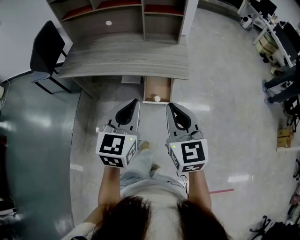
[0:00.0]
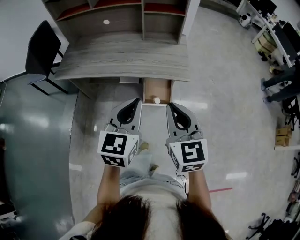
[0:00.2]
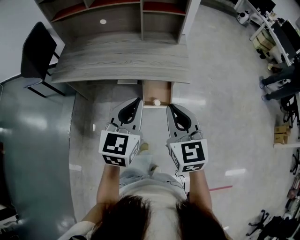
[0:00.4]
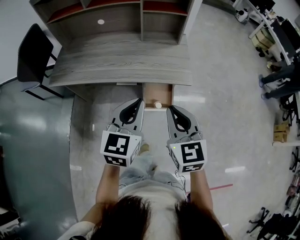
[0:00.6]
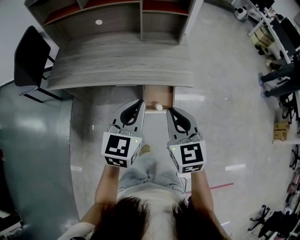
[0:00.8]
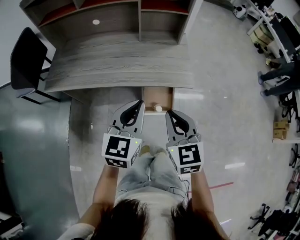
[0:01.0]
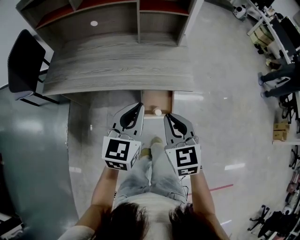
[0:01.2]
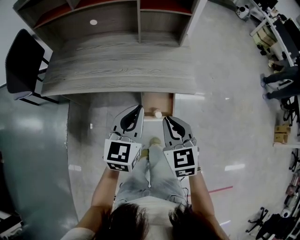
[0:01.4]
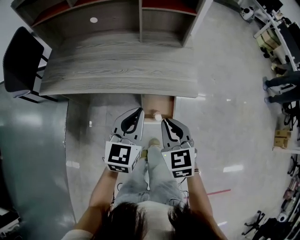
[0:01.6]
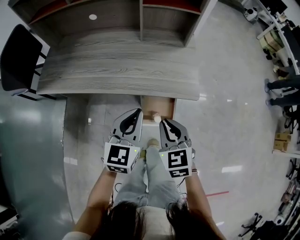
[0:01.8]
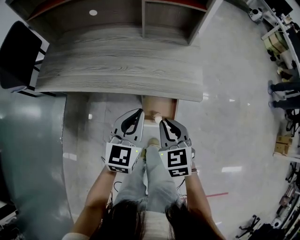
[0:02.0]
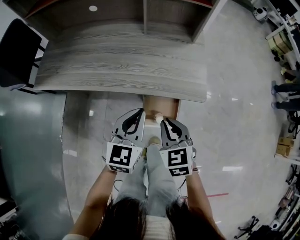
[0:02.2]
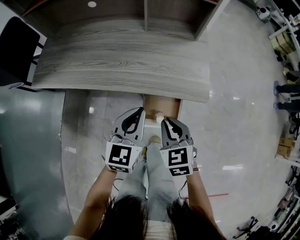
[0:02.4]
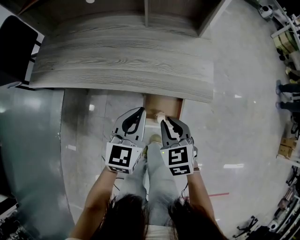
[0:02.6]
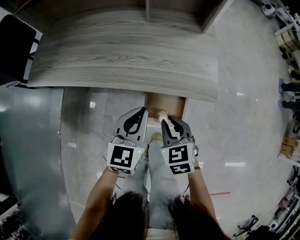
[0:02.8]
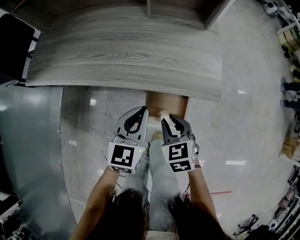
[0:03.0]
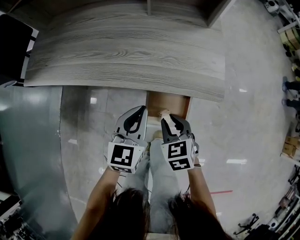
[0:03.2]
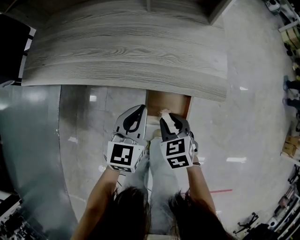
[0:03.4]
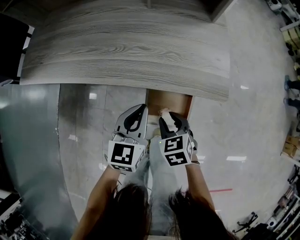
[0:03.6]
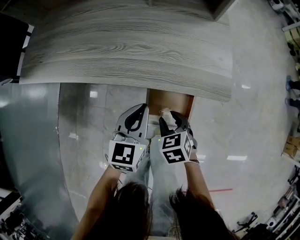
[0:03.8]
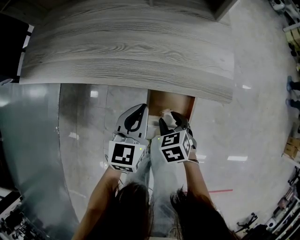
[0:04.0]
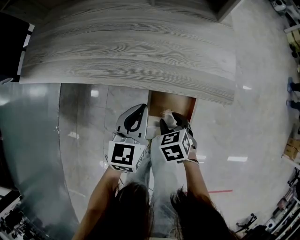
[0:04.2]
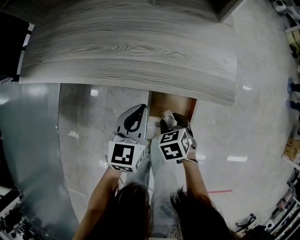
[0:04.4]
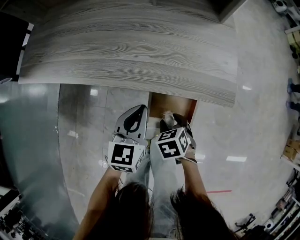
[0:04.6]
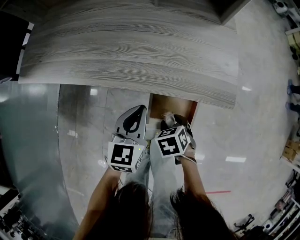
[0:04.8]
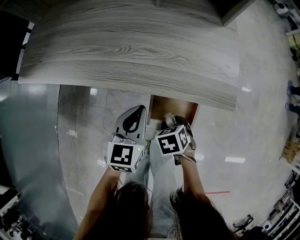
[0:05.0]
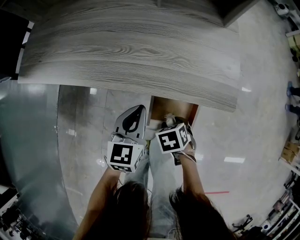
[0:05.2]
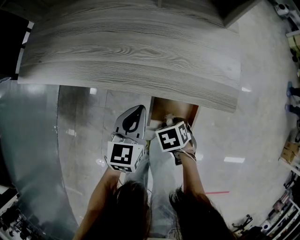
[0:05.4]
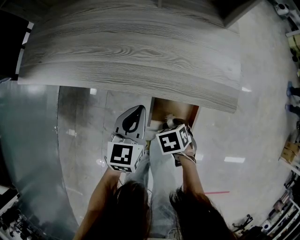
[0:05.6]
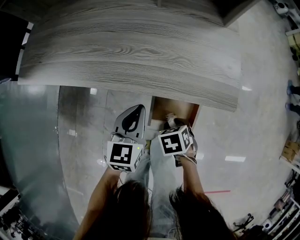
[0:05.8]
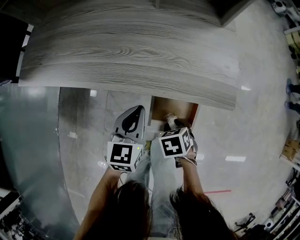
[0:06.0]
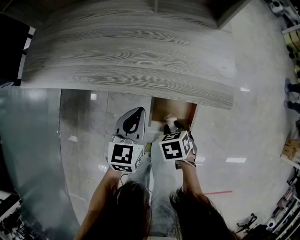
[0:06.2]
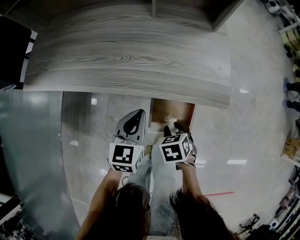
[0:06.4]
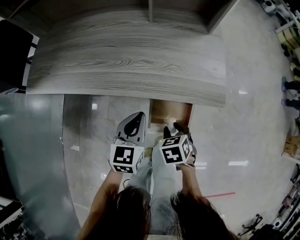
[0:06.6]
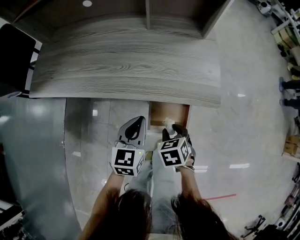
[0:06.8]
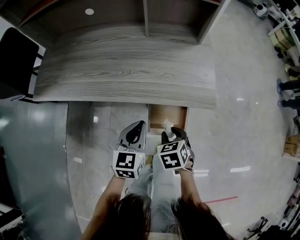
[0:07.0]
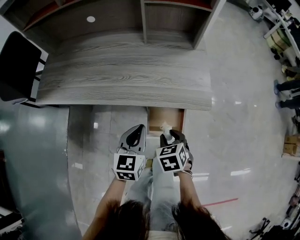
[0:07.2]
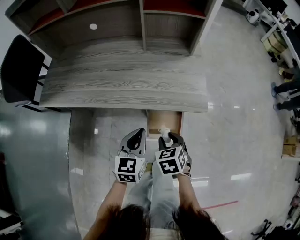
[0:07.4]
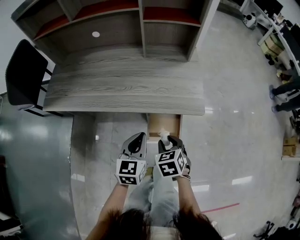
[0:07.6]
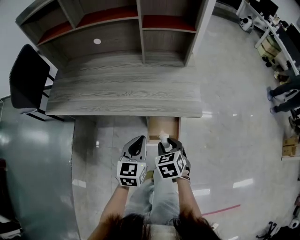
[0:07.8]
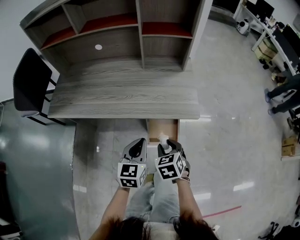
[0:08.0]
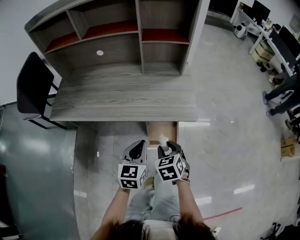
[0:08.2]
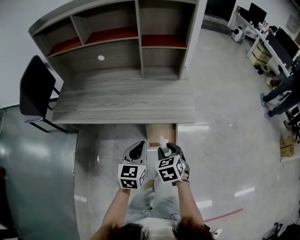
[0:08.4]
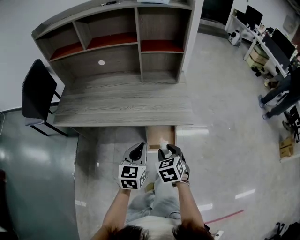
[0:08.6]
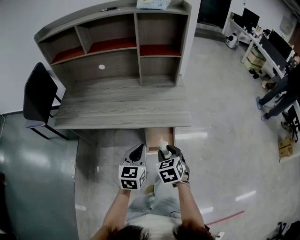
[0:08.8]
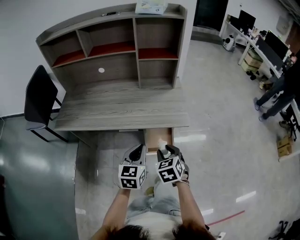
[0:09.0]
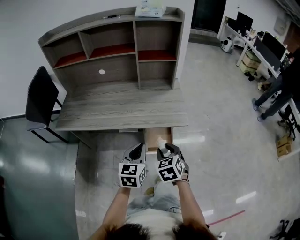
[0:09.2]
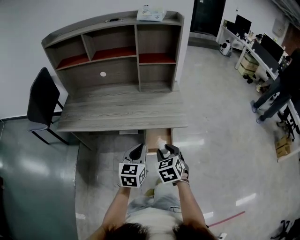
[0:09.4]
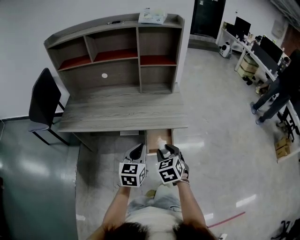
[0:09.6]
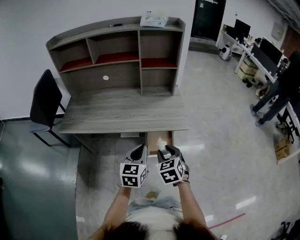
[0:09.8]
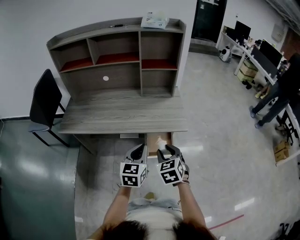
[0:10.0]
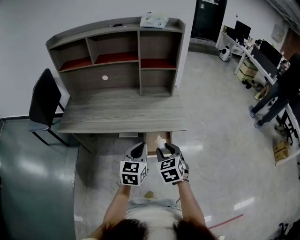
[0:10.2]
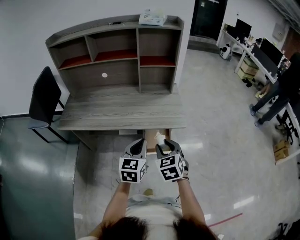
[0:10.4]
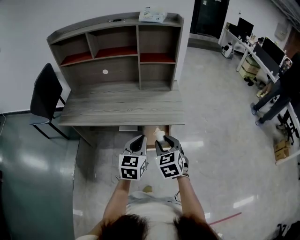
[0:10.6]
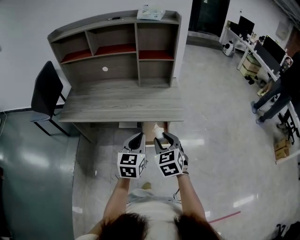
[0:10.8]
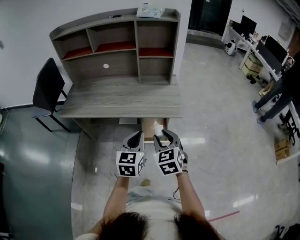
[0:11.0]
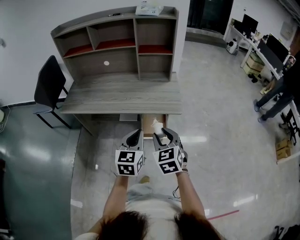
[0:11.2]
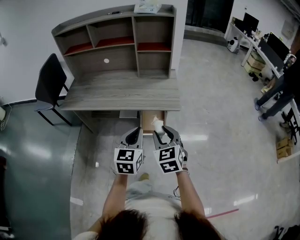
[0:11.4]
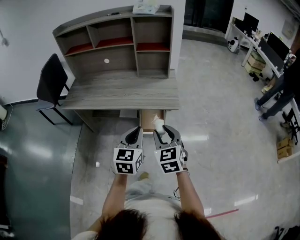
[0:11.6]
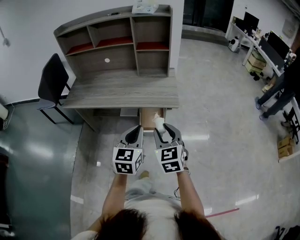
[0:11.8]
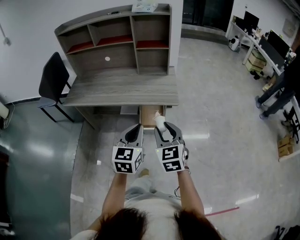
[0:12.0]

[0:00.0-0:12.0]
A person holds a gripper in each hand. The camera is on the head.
0:00.0 to 0:01.6: The left gripper is displaced forward and downward by approximately 20 cm. The right gripper heads downward and forward, covering some 20 cm.
0:01.6 to 0:03.0: The grippers both shift downward by some 20 cm.
0:03.0 to 0:04.4: The left gripper is displaced downward by approximately 5 cm, while the right gripper is displaced downward by some 10 cm, and opens up.
0:04.4 to 0:06.0: The grippers make only small movements.
0:06.0 to 0:07.6: The two grippers go approximately 15 cm upward. The right gripper swivels some 20 degrees.
0:07.6 to 0:09.0: The two grippers go some 10 cm upward and backward.
0:09.0 to 0:10.4: Both grippers move upward, about 5 cm.
0:10.4 to 0:12.0: Both grippers travel together backward, to the right and upward, some 15 cm.

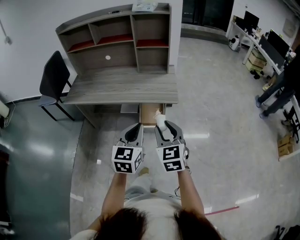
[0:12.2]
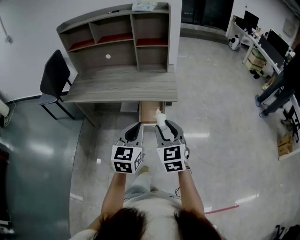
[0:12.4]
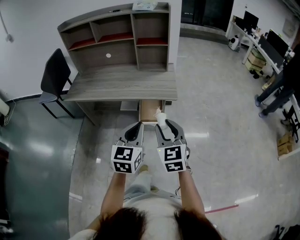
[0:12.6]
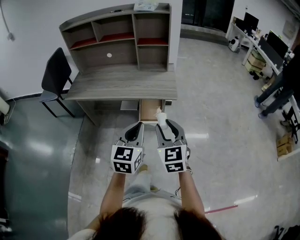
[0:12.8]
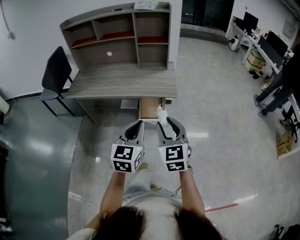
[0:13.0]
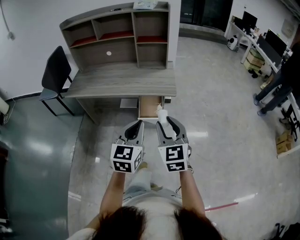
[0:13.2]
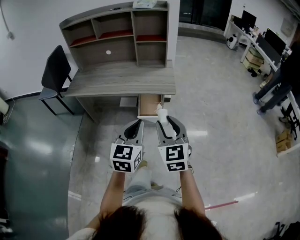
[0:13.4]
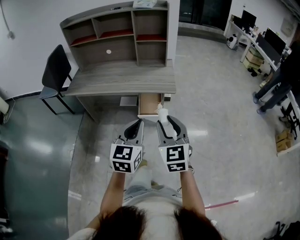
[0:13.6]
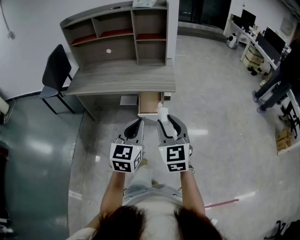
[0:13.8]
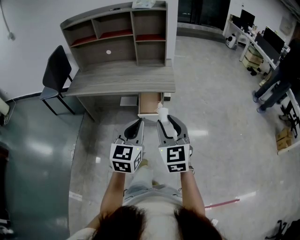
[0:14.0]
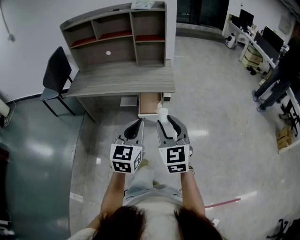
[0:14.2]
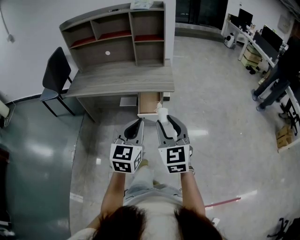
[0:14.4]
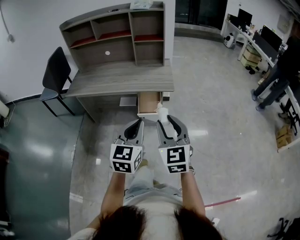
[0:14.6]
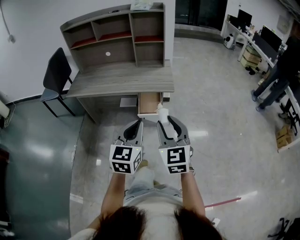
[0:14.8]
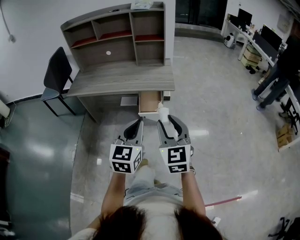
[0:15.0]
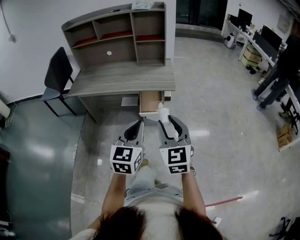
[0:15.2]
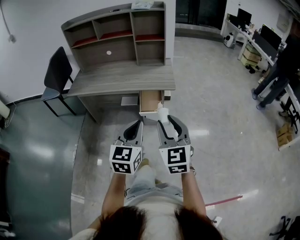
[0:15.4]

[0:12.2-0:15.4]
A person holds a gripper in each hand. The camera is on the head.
0:12.2 to 0:13.8: The two grippers go roughly 10 cm backward.
0:13.8 to 0:15.4: The grippers make only small movements.

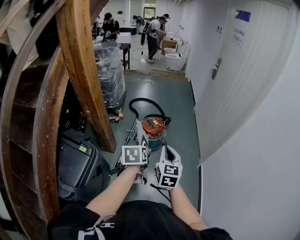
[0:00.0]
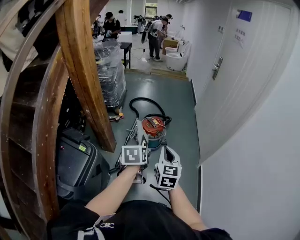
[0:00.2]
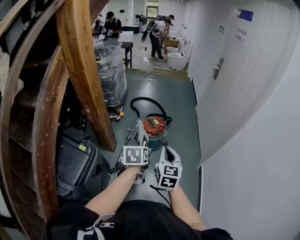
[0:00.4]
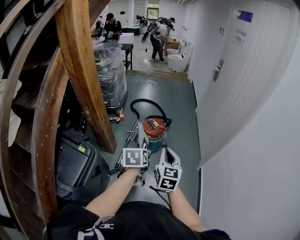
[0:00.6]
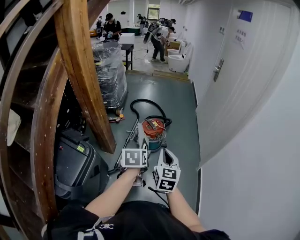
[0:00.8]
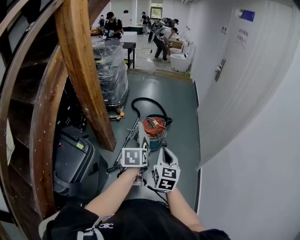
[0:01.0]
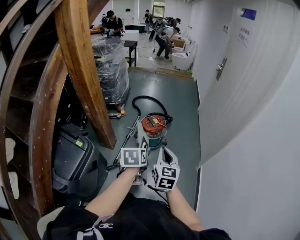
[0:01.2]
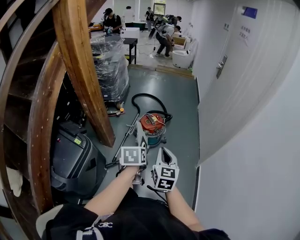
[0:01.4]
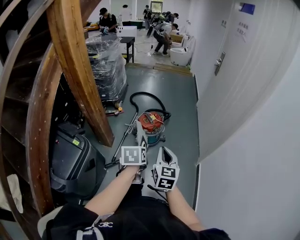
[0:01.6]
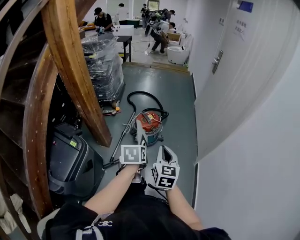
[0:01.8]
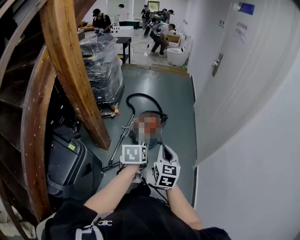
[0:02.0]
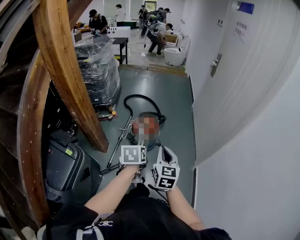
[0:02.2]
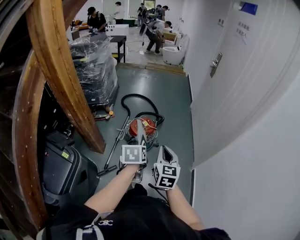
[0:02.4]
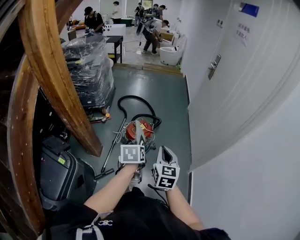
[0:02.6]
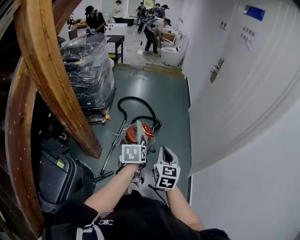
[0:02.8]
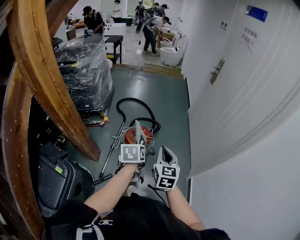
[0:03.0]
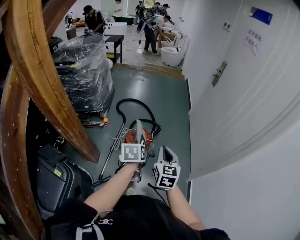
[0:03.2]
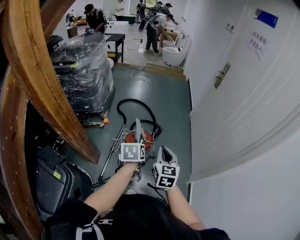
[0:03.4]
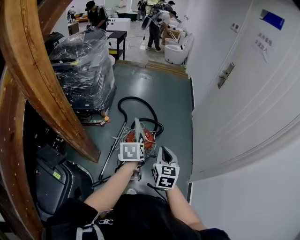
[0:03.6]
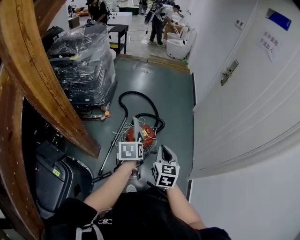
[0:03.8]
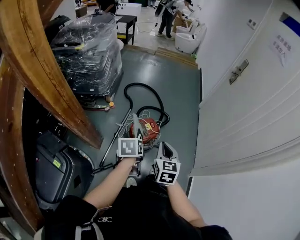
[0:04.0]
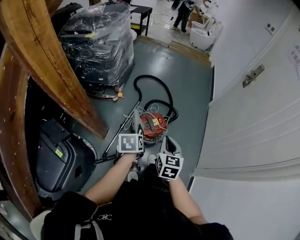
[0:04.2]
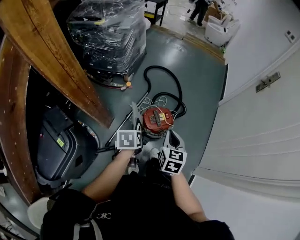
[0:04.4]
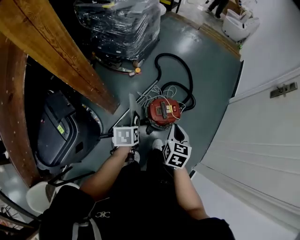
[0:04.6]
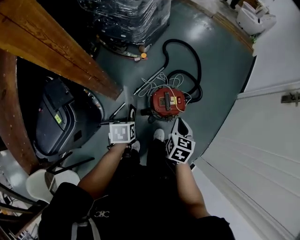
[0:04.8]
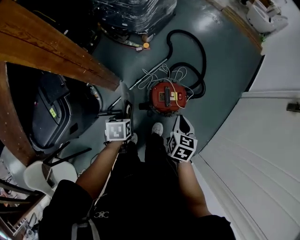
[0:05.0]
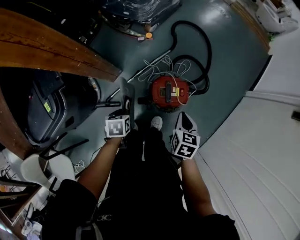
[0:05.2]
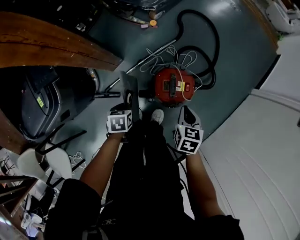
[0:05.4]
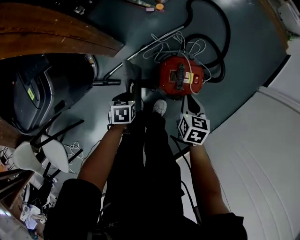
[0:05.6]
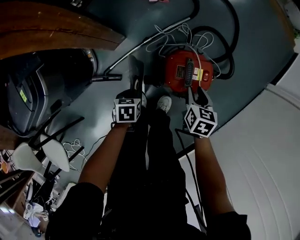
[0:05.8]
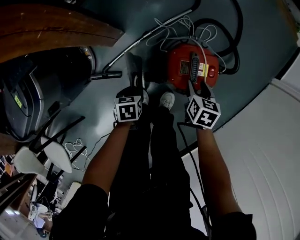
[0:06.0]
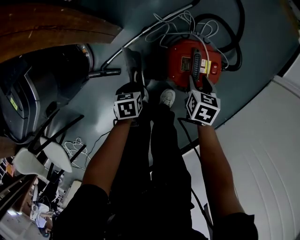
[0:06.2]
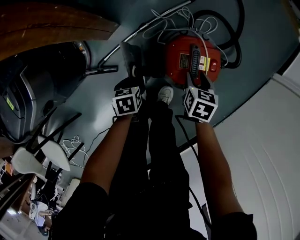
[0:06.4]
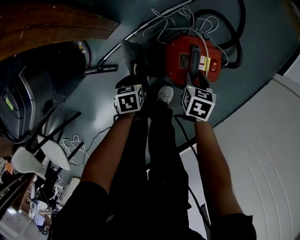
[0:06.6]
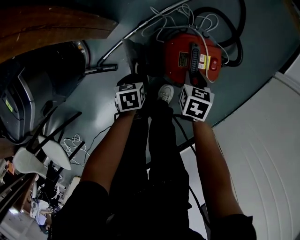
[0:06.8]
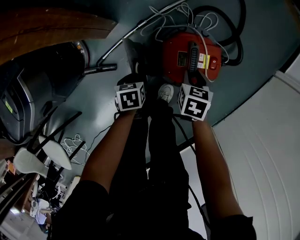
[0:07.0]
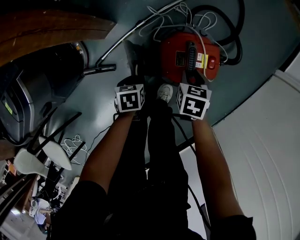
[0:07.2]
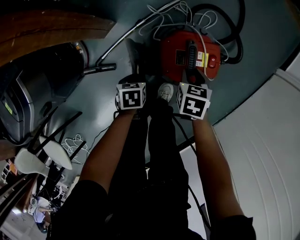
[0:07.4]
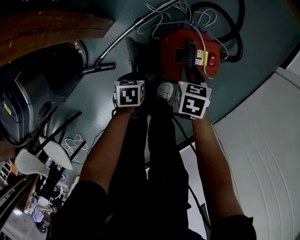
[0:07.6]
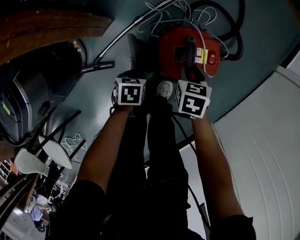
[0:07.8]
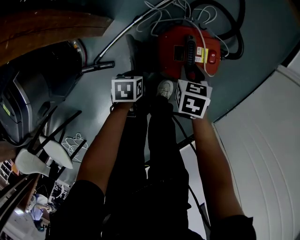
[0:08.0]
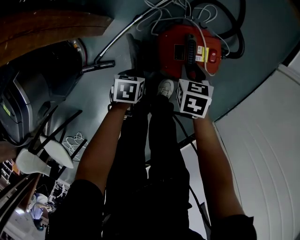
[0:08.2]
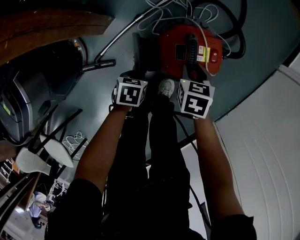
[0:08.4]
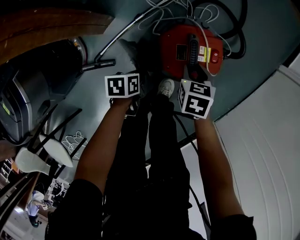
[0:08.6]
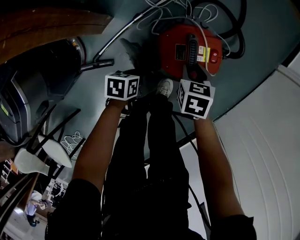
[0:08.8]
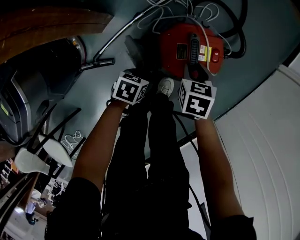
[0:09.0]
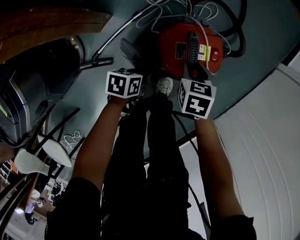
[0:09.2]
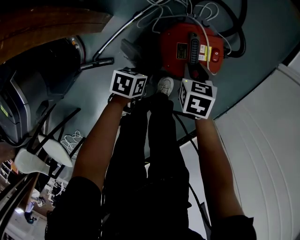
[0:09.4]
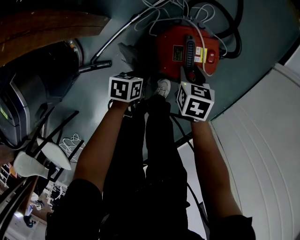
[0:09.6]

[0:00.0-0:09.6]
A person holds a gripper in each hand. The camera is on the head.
0:00.0 to 0:01.6: The grippers both shift to the right by about 5 cm.
0:01.6 to 0:03.2: The two grippers go some 25 cm forward.
0:03.2 to 0:04.8: The right gripper moves roughly 25 cm, and swivels about 30 degrees; the left gripper is displaced downward by some 20 cm, and swivels about 30 degrees.
0:04.8 to 0:06.4: The two grippers go roughly 35 cm downward. The right gripper turns by some 20 degrees, and opens its fingers.
0:06.4 to 0:08.0: The left gripper ends up some 5 cm from where it was.
